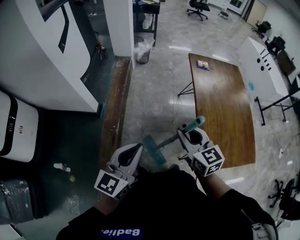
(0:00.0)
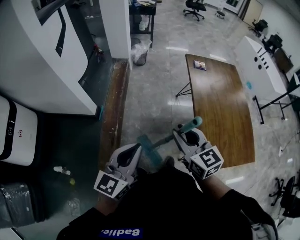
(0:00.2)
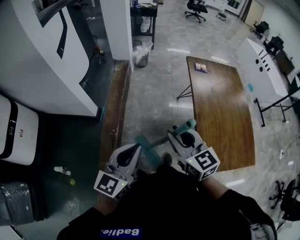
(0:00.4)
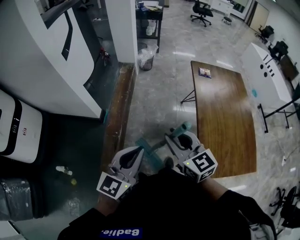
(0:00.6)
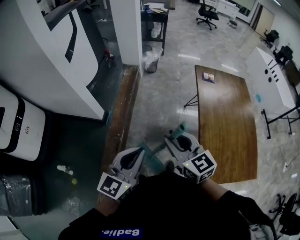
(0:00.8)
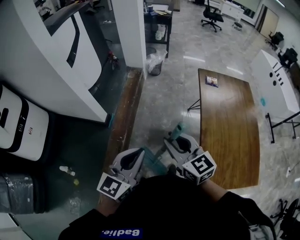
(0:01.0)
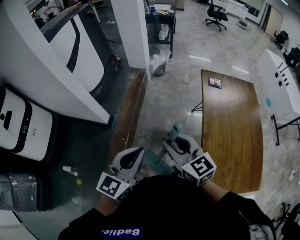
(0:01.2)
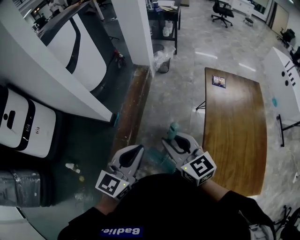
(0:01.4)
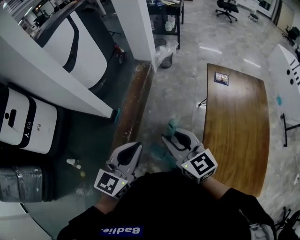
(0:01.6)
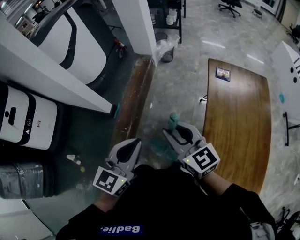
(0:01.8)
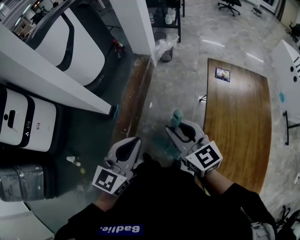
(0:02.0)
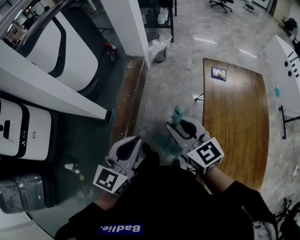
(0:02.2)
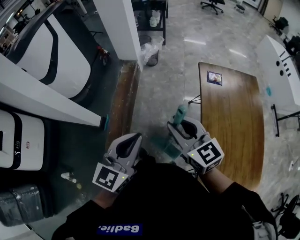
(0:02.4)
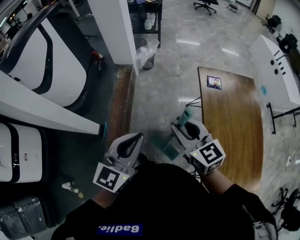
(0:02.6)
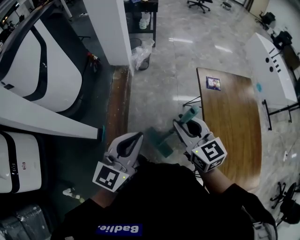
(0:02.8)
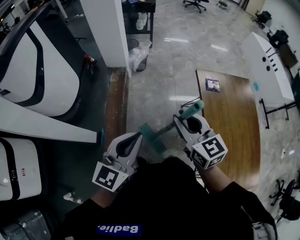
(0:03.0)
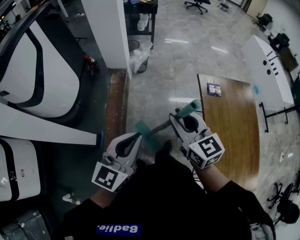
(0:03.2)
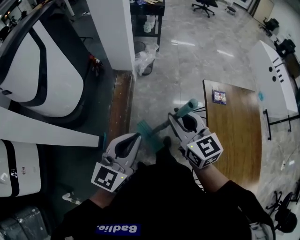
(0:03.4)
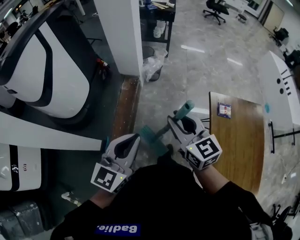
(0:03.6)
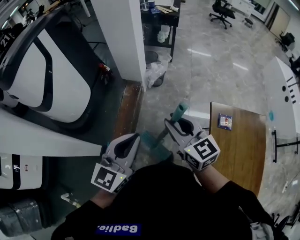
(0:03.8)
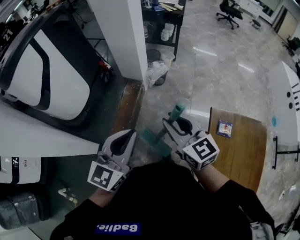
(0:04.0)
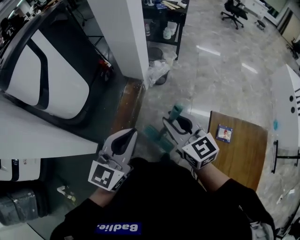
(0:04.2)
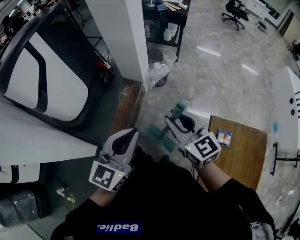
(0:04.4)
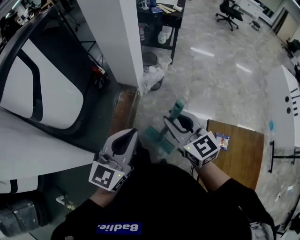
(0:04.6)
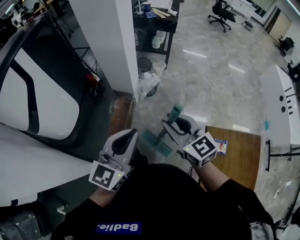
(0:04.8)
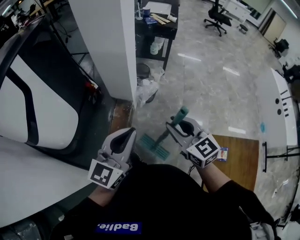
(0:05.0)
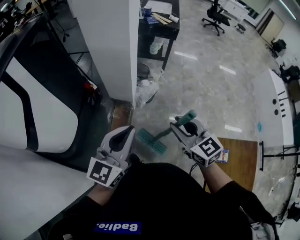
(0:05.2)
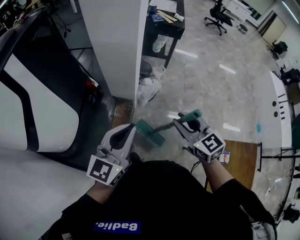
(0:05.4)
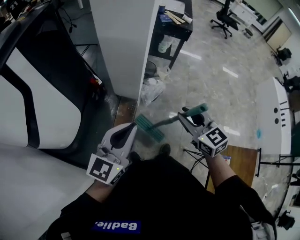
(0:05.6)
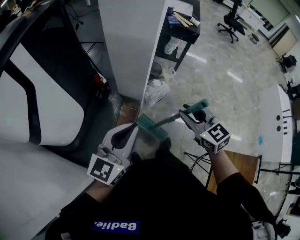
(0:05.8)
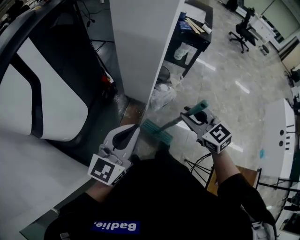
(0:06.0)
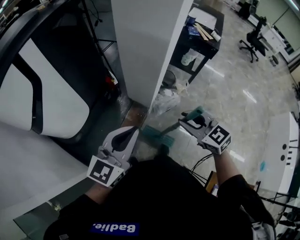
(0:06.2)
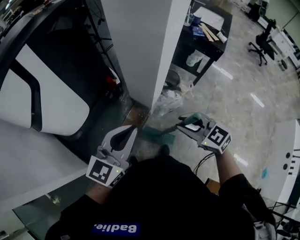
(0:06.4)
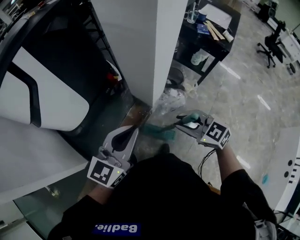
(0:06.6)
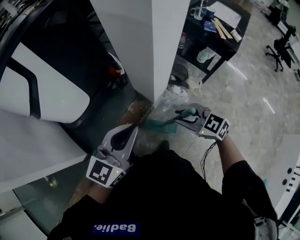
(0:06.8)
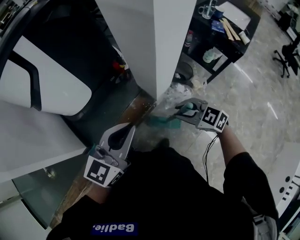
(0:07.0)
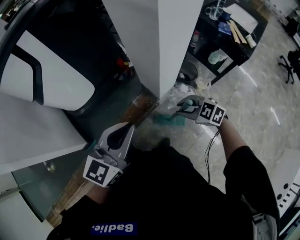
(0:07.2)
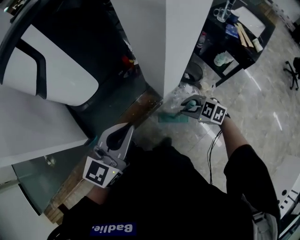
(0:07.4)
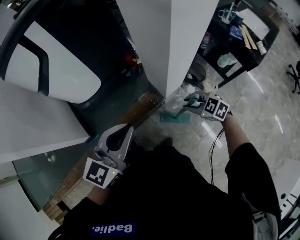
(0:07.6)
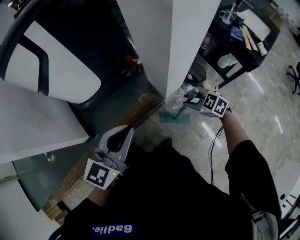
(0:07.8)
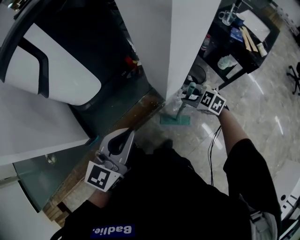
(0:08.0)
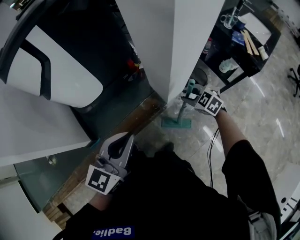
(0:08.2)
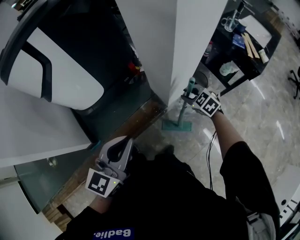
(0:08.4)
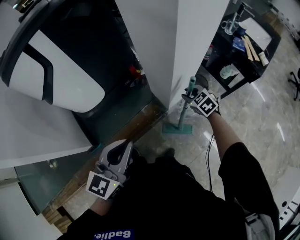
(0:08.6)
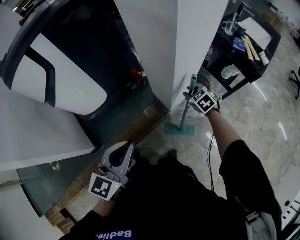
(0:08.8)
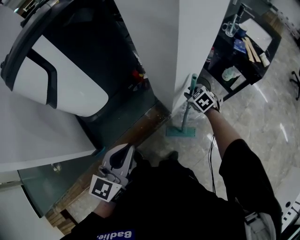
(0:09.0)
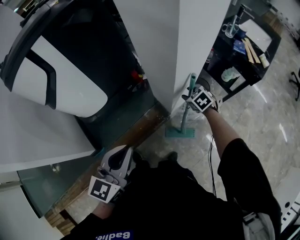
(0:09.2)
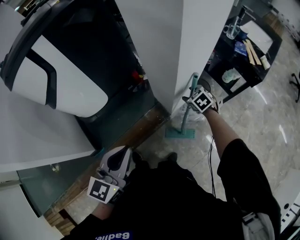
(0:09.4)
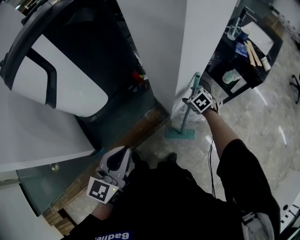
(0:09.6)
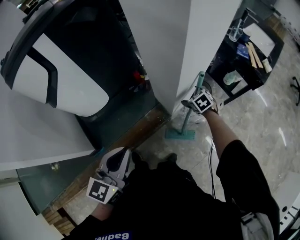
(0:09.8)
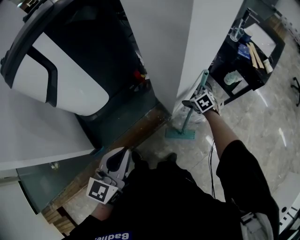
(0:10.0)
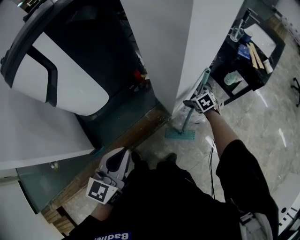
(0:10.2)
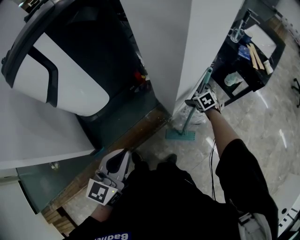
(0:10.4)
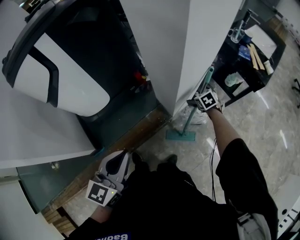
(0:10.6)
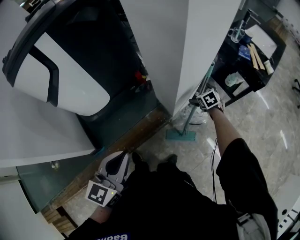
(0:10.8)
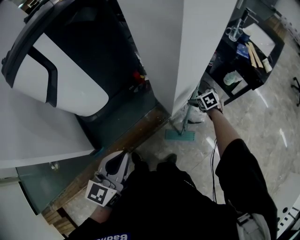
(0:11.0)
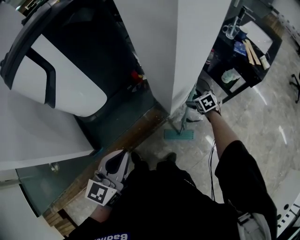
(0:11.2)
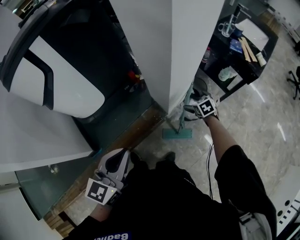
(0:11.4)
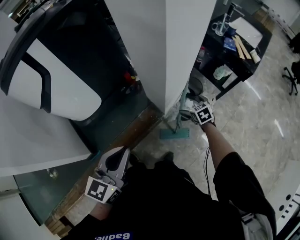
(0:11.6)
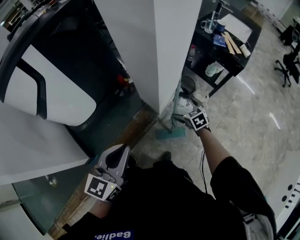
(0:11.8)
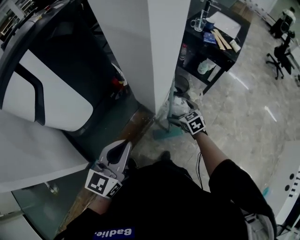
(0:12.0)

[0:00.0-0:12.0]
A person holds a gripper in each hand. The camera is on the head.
0:00.0 to 0:01.6: The left gripper is displaced forward and to the right by roughly 15 cm. The right gripper is displaced forward by approximately 10 cm, and changes its angle by about 20 degrees.
0:01.6 to 0:03.0: The grippers both shift forward by approximately 25 cm. The right gripper changes its angle by some 20 degrees.
0:03.0 to 0:04.4: The two grippers go roughly 30 cm forward. The right gripper turns by about 20 degrees.
0:04.4 to 0:06.0: The left gripper is displaced forward and to the left by approximately 30 cm, while the right gripper shifts approximately 25 cm forward, and changes its angle by some 20 degrees.
0:06.0 to 0:07.6: The right gripper shifts approximately 20 cm downward, and turns by about 60 degrees; the left gripper moves approximately 10 cm, and swivels roughly 30 degrees.
0:07.6 to 0:09.0: The right gripper goes about 15 cm forward, and turns by about 30 degrees.
0:09.0 to 0:10.4: The right gripper travels downward by approximately 5 cm, and opens up.
0:10.4 to 0:12.0: The right gripper heads backward, covering about 15 cm.

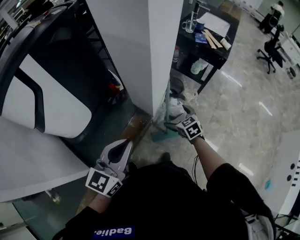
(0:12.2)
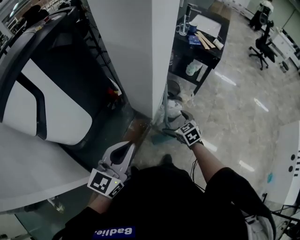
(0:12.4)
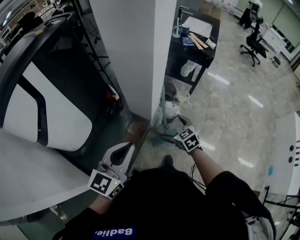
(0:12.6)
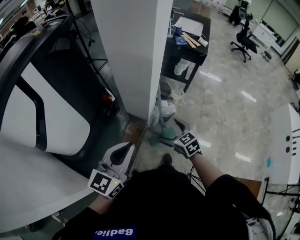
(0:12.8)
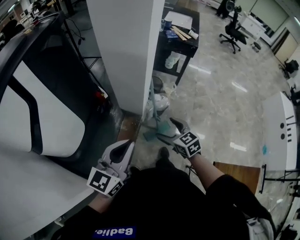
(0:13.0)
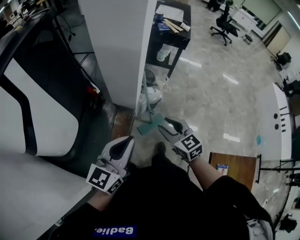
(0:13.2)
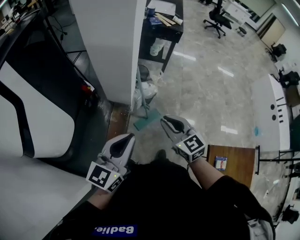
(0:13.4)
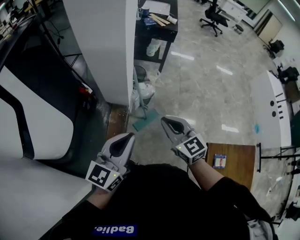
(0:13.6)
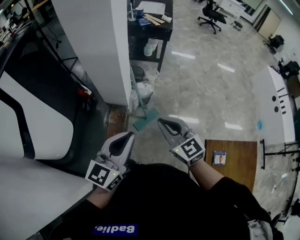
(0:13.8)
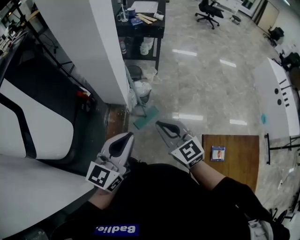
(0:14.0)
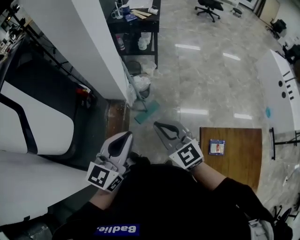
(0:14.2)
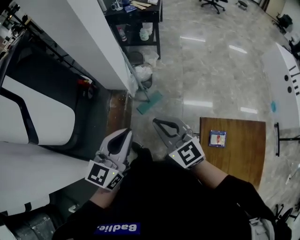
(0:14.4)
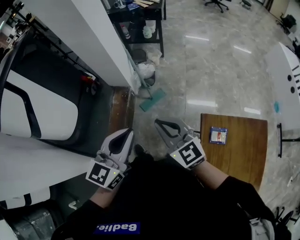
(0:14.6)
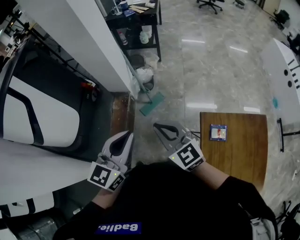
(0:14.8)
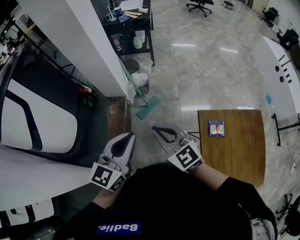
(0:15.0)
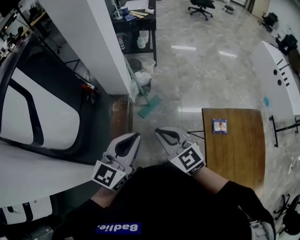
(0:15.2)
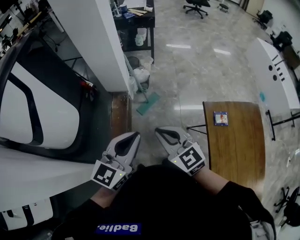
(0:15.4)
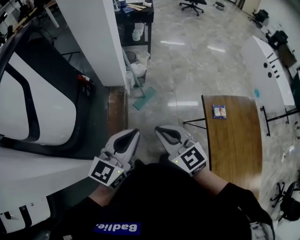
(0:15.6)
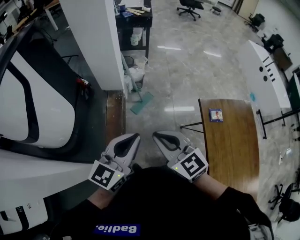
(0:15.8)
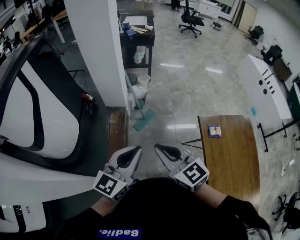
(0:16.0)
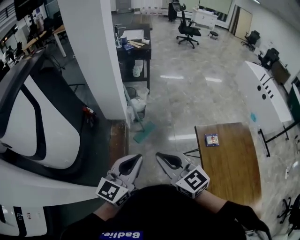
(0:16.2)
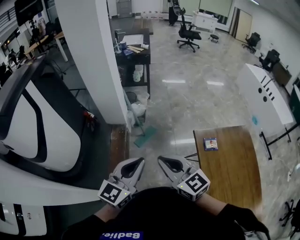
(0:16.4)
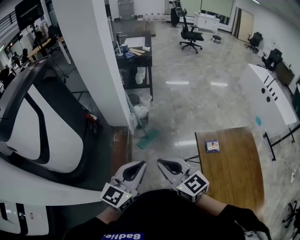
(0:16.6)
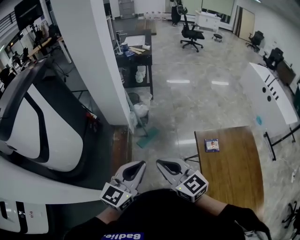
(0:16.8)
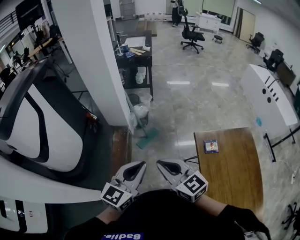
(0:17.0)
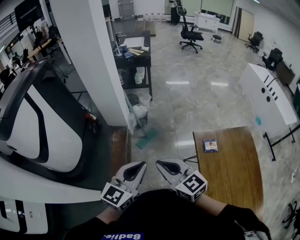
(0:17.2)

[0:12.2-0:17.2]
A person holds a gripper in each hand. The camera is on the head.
0:12.2 to 0:13.8: The right gripper shifts by roughly 30 cm, changes its angle by approximately 30 degrees, and closes; the left gripper shifts by approximately 10 cm, and turns by some 30 degrees.
0:13.8 to 0:15.6: Both grippers move backward, roughly 25 cm.
0:15.6 to 0:17.2: The two grippers go approximately 10 cm to the right.

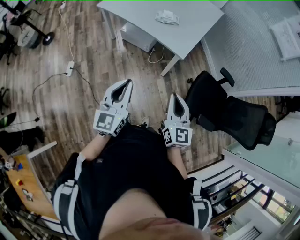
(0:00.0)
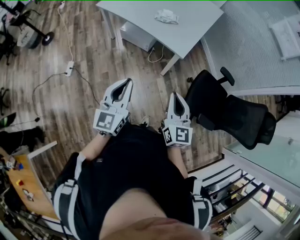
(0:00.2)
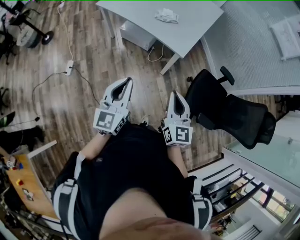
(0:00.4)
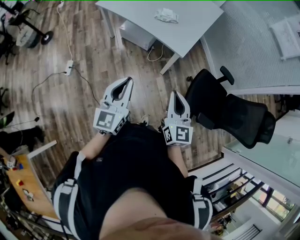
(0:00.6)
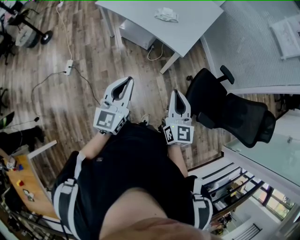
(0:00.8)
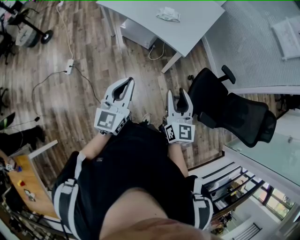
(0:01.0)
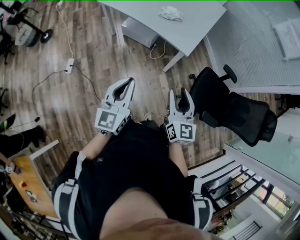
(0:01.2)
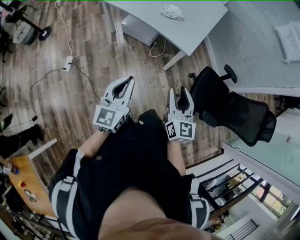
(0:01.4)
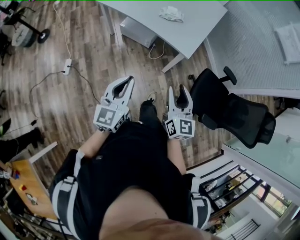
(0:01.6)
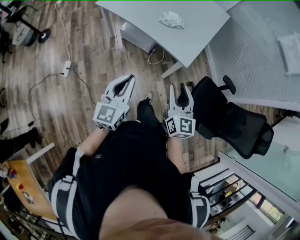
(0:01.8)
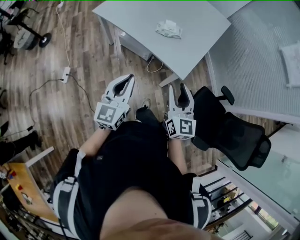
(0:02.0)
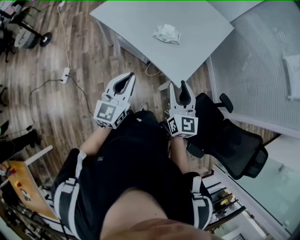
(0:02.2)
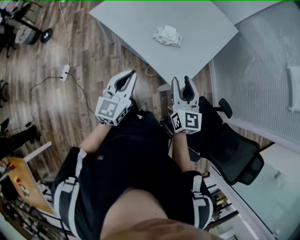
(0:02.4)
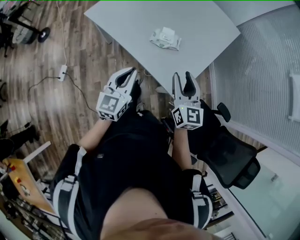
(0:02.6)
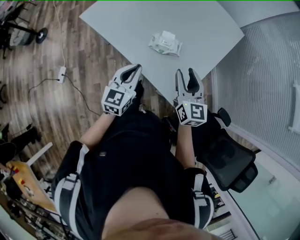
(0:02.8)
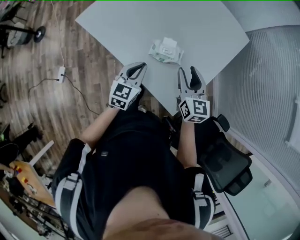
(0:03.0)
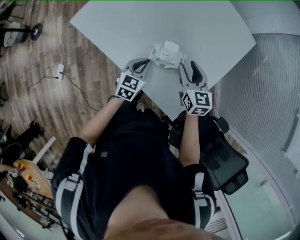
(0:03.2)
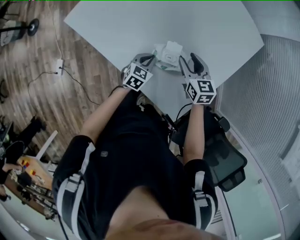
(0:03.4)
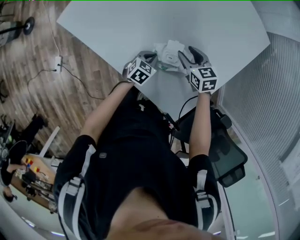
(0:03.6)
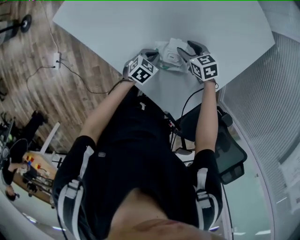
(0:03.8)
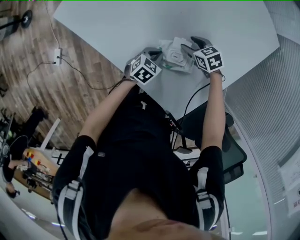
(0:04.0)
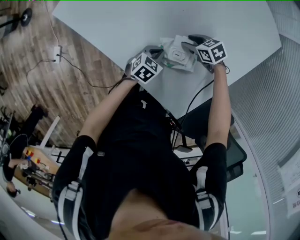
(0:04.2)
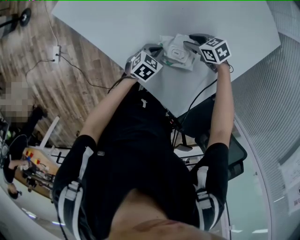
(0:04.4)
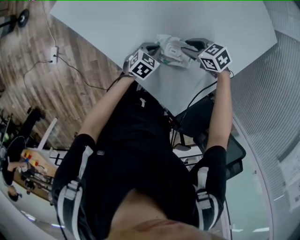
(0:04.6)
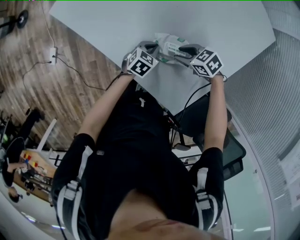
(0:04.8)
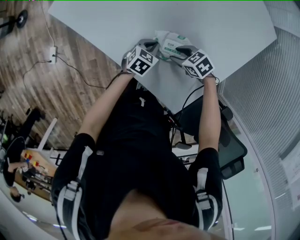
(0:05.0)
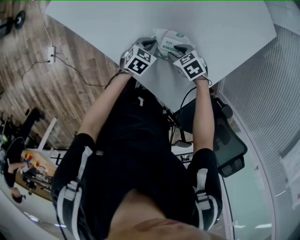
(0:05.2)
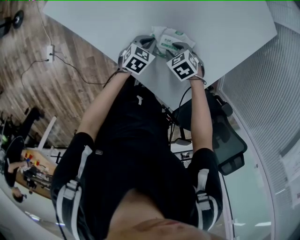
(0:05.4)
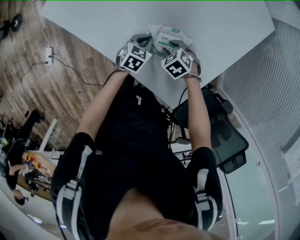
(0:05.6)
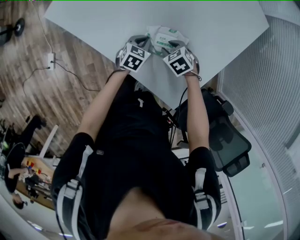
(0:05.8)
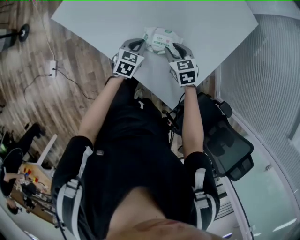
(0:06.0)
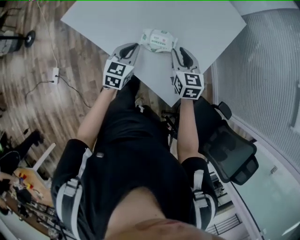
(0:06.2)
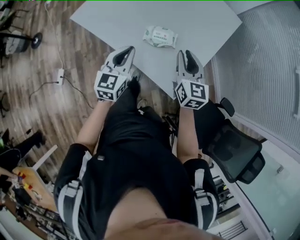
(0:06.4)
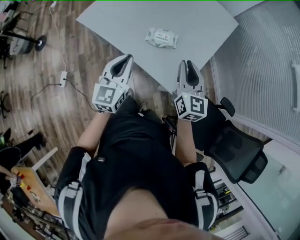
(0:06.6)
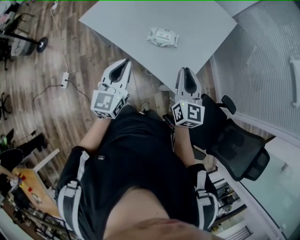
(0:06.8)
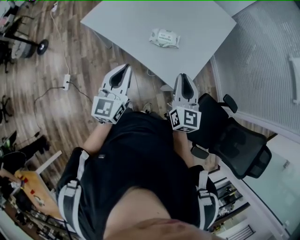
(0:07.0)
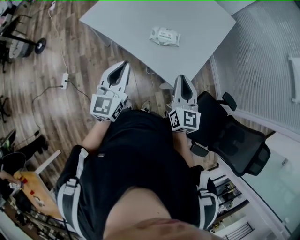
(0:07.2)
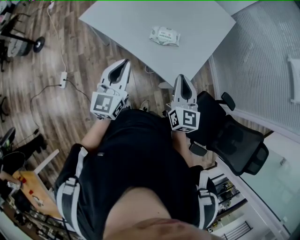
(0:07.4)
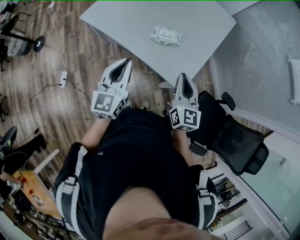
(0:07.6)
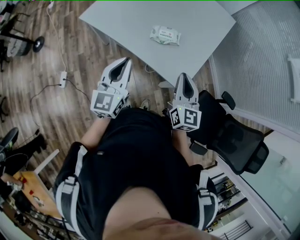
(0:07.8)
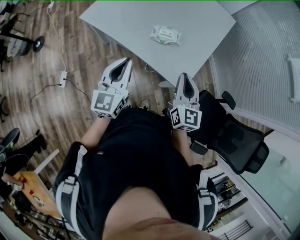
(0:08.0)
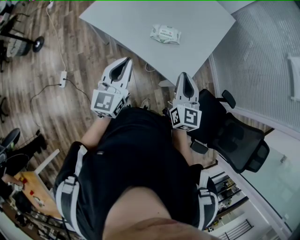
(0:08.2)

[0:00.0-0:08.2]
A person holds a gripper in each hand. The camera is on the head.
0:00.0 to 0:01.6: The right gripper travels forward and to the left by approximately 10 cm, and opens its fingers, while the left gripper travels to the left and forward by roughly 10 cm.
0:01.6 to 0:03.2: The two grippers travel together, forward, about 70 cm. The right gripper swivels roughly 30 degrees. Meanwhile the left gripper changes its angle by about 30 degrees.
0:03.2 to 0:05.0: The grippers both shift downward by roughly 25 cm. The right gripper swivels some 60 degrees; the left gripper swivels roughly 20 degrees.
0:05.0 to 0:06.6: Both grippers travel together upward, about 40 cm. The right gripper tips its fingers upward by about 50 degrees, and closes, while the left gripper points its fingers about 40 degrees further upward.
0:06.6 to 0:08.2: The left gripper heads backward and to the left, covering some 10 cm. Meanwhile the right gripper moves backward, about 10 cm.
